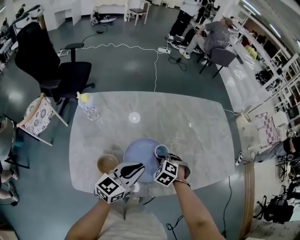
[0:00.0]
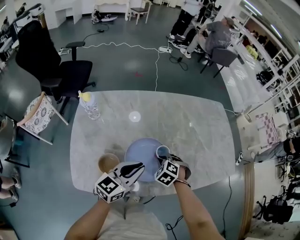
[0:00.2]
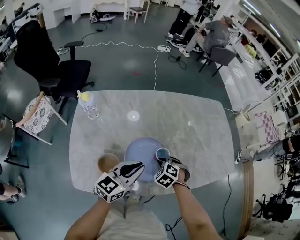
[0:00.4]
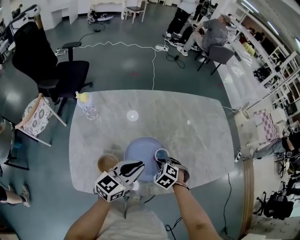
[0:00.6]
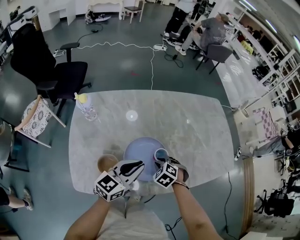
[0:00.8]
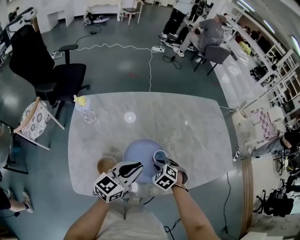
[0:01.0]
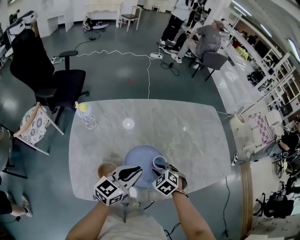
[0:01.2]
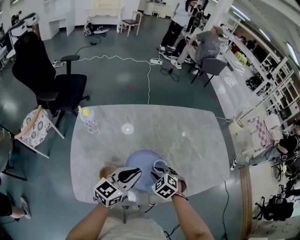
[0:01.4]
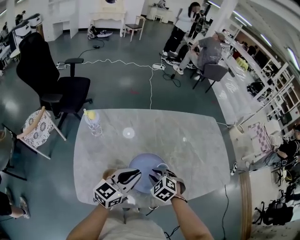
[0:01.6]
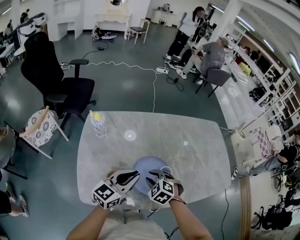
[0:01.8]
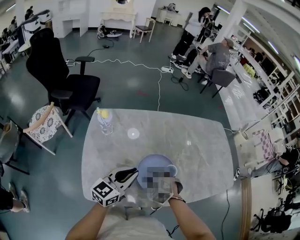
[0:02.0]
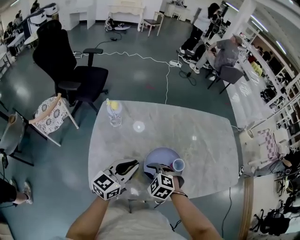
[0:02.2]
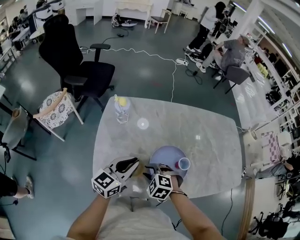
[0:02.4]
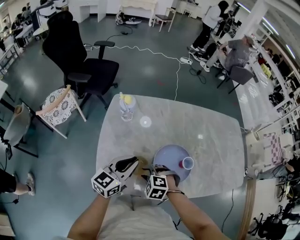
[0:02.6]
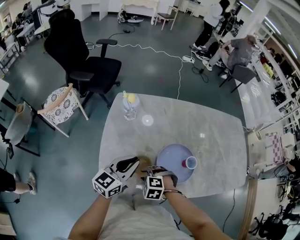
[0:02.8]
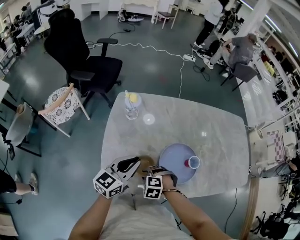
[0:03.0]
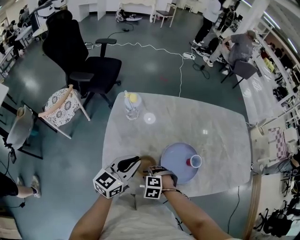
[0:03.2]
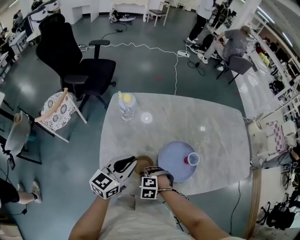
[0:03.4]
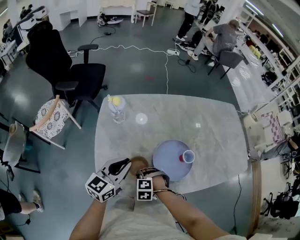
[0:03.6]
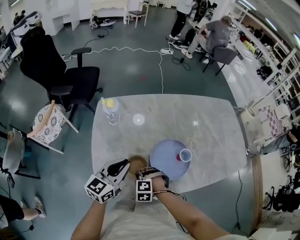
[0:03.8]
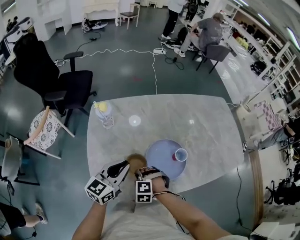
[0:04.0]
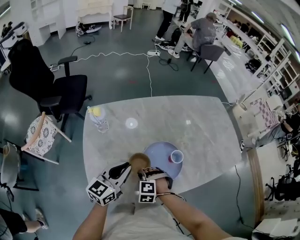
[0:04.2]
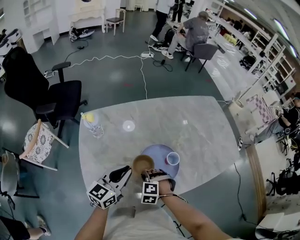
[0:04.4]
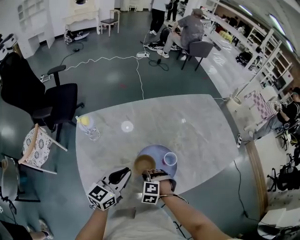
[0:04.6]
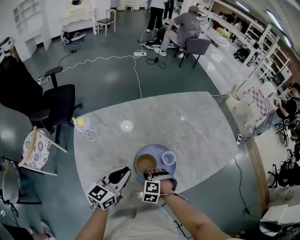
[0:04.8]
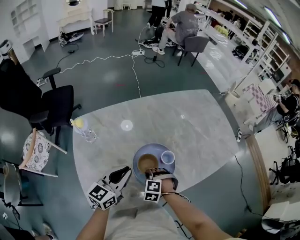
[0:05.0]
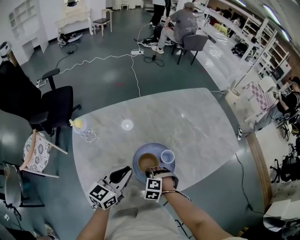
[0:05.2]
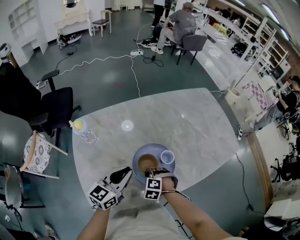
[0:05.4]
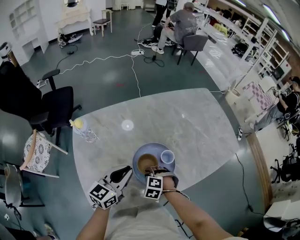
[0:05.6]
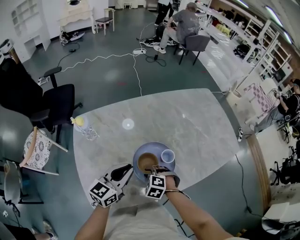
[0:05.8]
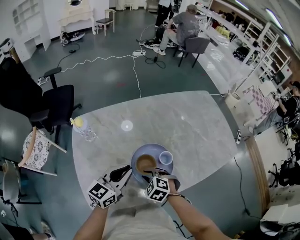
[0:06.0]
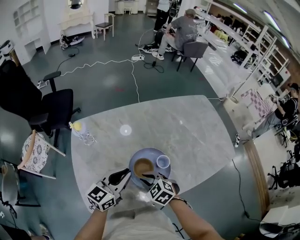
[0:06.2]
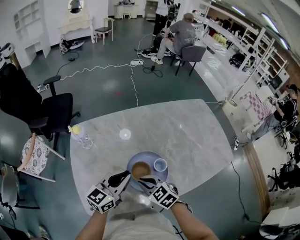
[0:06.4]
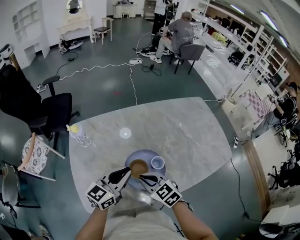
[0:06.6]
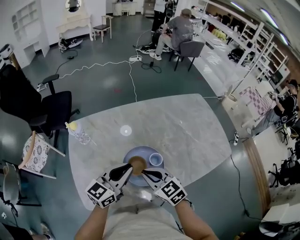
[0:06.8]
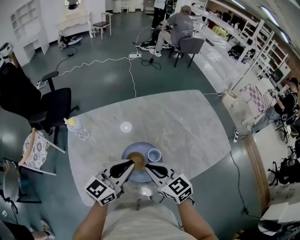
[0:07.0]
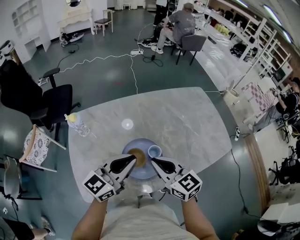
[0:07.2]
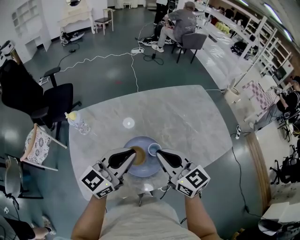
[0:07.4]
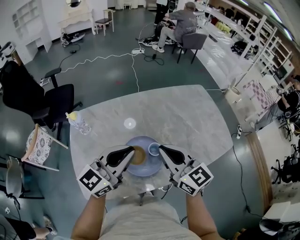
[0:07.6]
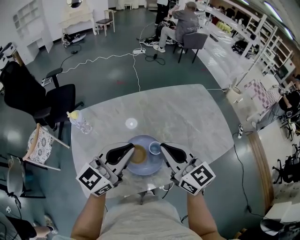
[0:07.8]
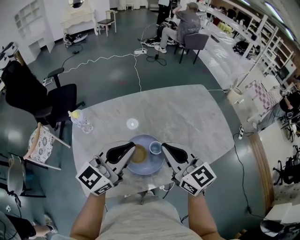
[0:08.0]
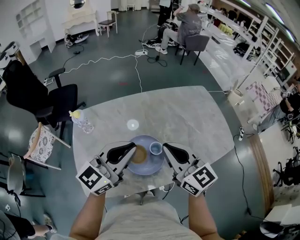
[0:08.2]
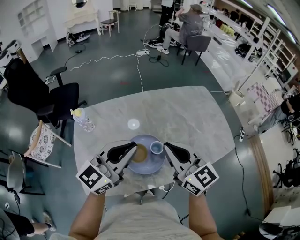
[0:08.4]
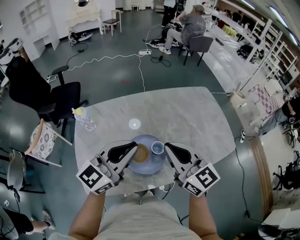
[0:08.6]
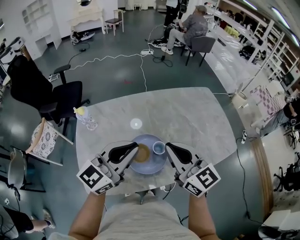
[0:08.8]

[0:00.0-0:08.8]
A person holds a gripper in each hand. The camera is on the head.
0:00.0 to 0:01.4: The right gripper changes place by roughly 5 cm.
0:01.4 to 0:03.0: The left gripper moves some 20 cm. The right gripper shifts by about 25 cm, and turns by roughly 40 degrees.
0:03.0 to 0:04.4: The left gripper changes place by roughly 5 cm. The right gripper changes place by some 10 cm, changes its angle by about 20 degrees, and closes.
0:04.4 to 0:05.8: The right gripper opens.
0:05.8 to 0:07.4: The left gripper shifts about 15 cm upward and to the right. Meanwhile the right gripper shifts some 30 cm upward, tilts its fingers approximately 60 degrees upward, and closes its fingers.
0:07.4 to 0:08.8: The right gripper goes some 5 cm upward.

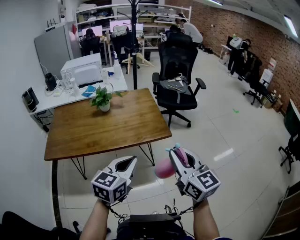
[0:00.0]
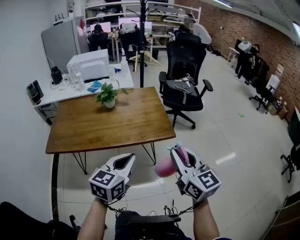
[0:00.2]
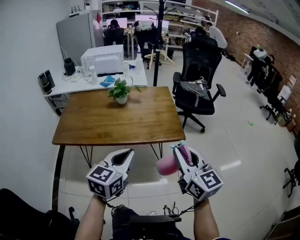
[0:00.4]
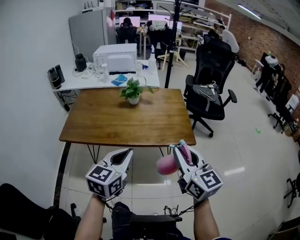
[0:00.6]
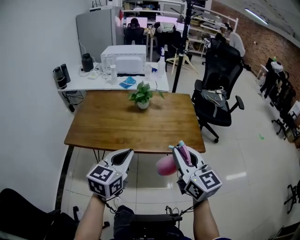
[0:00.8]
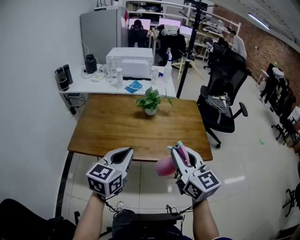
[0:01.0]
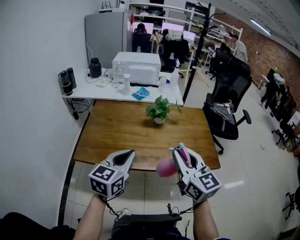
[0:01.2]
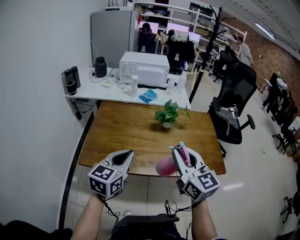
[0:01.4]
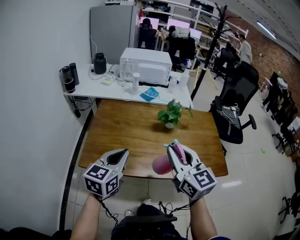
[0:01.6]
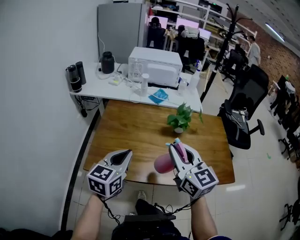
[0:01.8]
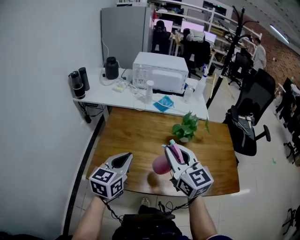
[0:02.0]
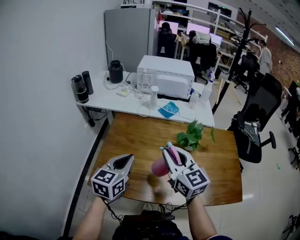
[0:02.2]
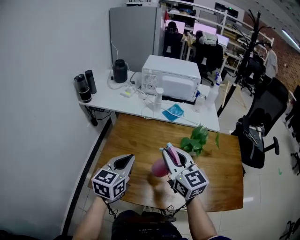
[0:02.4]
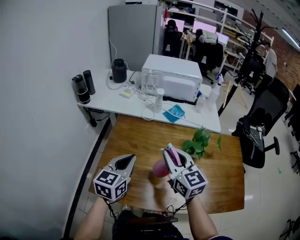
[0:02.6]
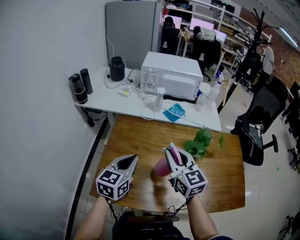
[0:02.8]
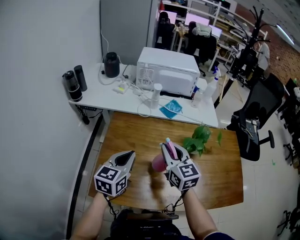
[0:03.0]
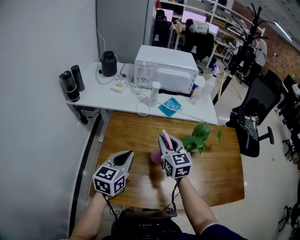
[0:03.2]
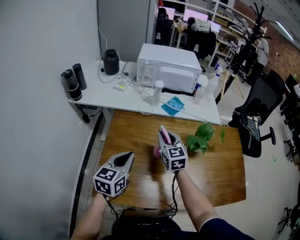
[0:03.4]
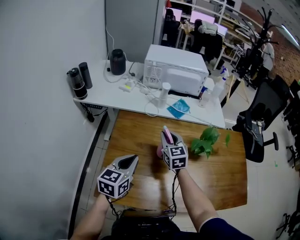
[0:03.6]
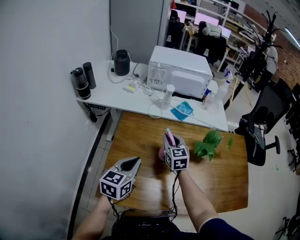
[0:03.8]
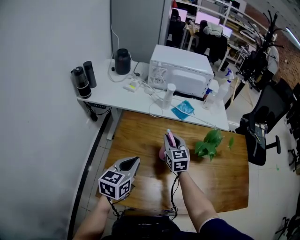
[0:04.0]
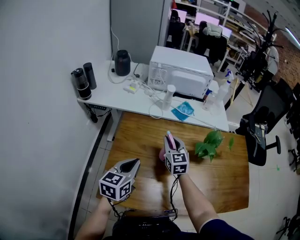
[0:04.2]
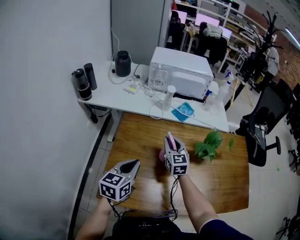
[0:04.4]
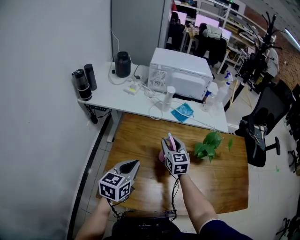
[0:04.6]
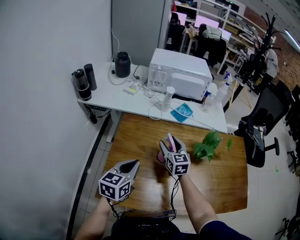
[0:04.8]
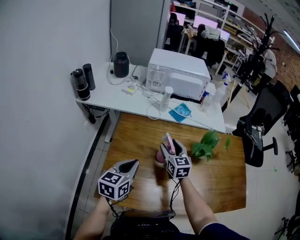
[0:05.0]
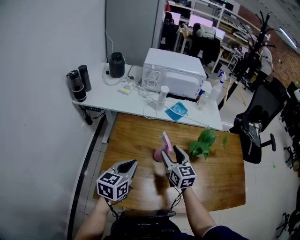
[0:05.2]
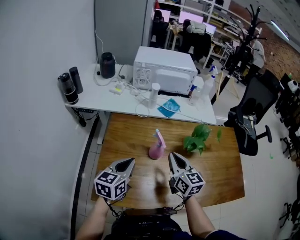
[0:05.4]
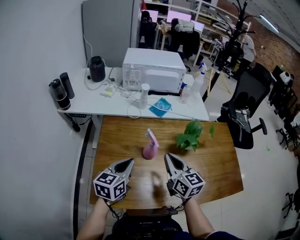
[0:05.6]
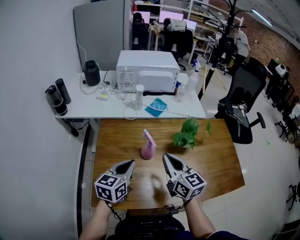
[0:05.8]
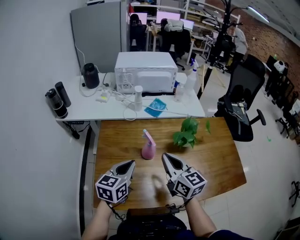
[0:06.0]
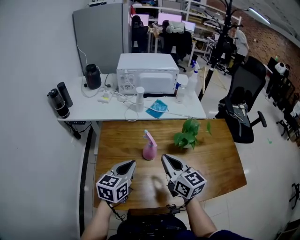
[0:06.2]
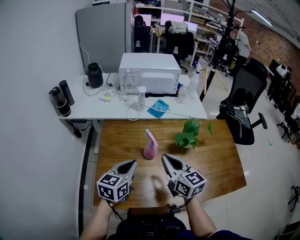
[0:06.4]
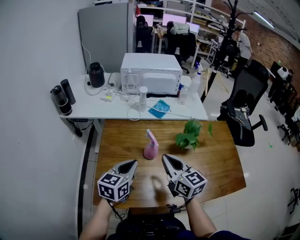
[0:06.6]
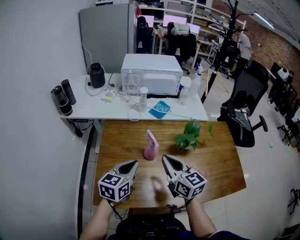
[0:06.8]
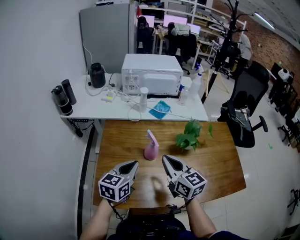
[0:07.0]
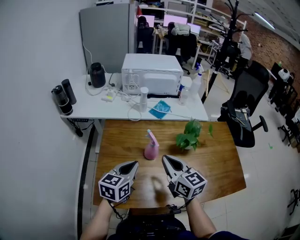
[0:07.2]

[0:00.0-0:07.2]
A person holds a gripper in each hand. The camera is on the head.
0:00.0 to 0:01.4: Both grippers move to the left and forward, approximately 40 cm.
0:01.4 to 0:02.8: The grippers both shift forward and to the left by some 25 cm.
0:02.8 to 0:04.4: The right gripper heads forward and downward, covering about 20 cm. The left gripper goes about 5 cm downward.
0:04.4 to 0:05.8: The right gripper travels backward, upward and to the right by some 20 cm, turns by some 20 degrees, and opens, then closes once more; the left gripper goes some 5 cm to the right.
0:05.8 to 0:07.2: The grippers make only small movements.

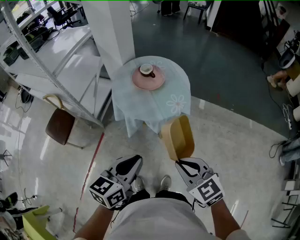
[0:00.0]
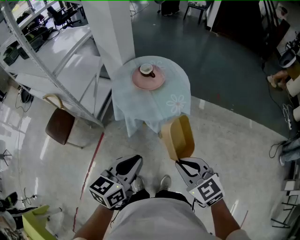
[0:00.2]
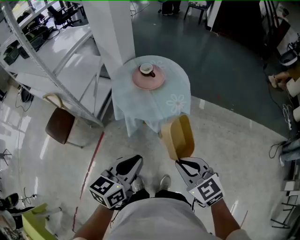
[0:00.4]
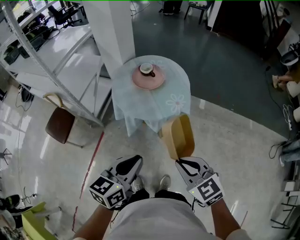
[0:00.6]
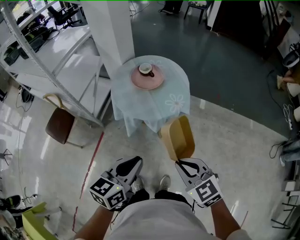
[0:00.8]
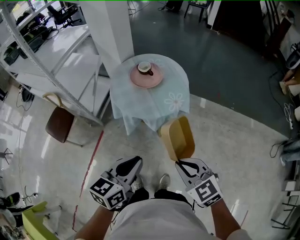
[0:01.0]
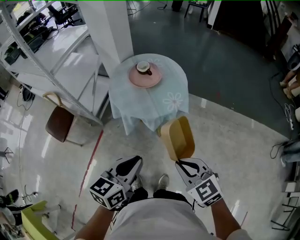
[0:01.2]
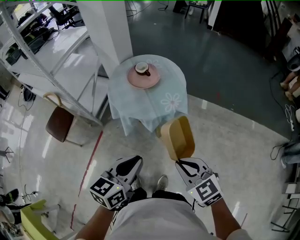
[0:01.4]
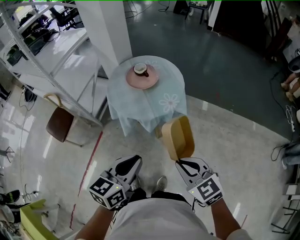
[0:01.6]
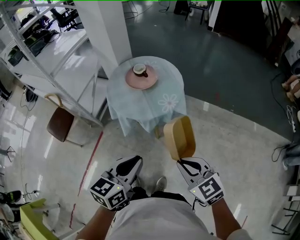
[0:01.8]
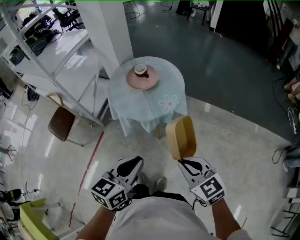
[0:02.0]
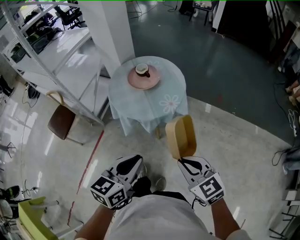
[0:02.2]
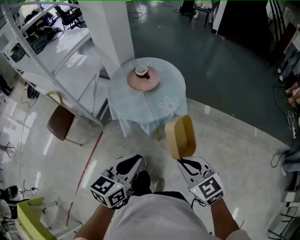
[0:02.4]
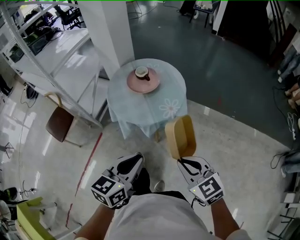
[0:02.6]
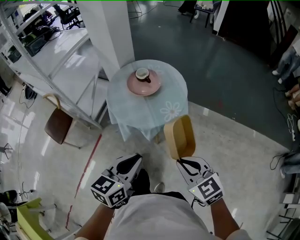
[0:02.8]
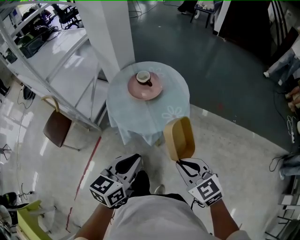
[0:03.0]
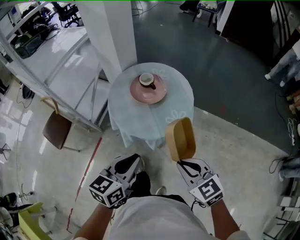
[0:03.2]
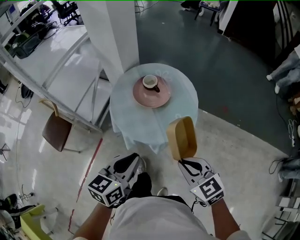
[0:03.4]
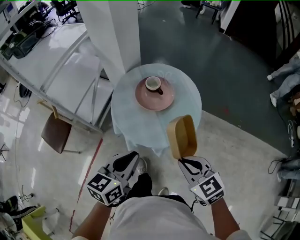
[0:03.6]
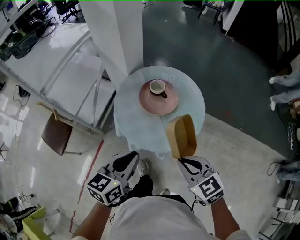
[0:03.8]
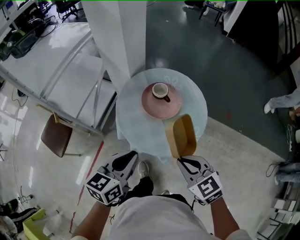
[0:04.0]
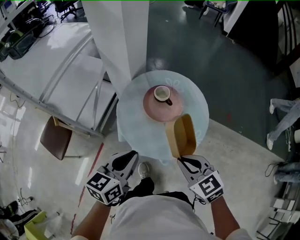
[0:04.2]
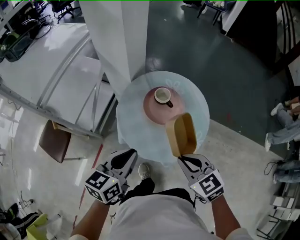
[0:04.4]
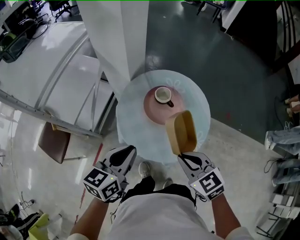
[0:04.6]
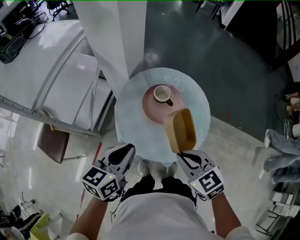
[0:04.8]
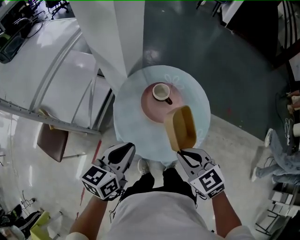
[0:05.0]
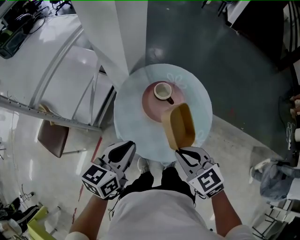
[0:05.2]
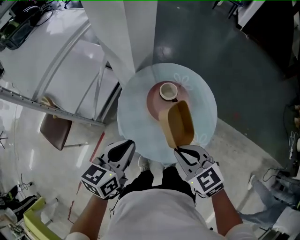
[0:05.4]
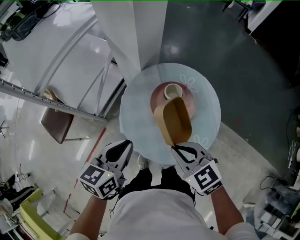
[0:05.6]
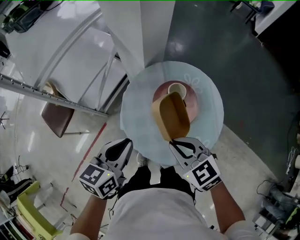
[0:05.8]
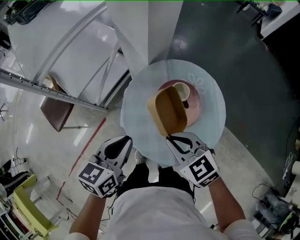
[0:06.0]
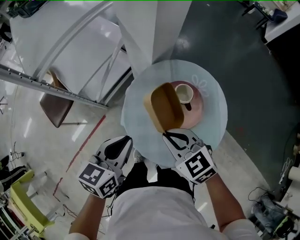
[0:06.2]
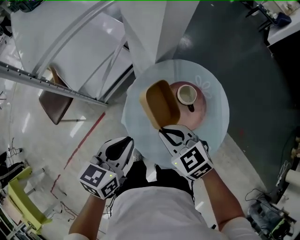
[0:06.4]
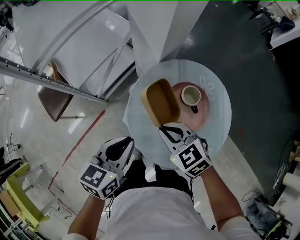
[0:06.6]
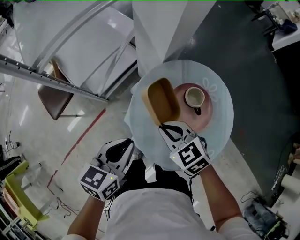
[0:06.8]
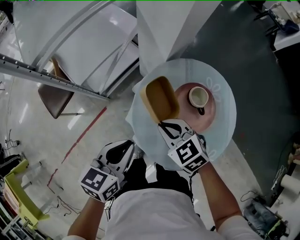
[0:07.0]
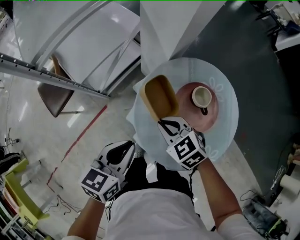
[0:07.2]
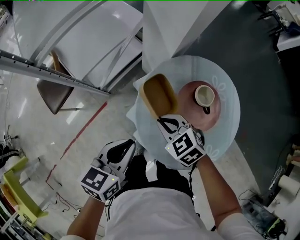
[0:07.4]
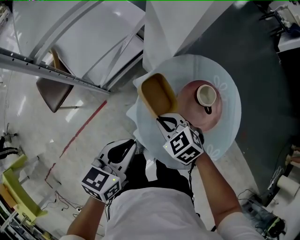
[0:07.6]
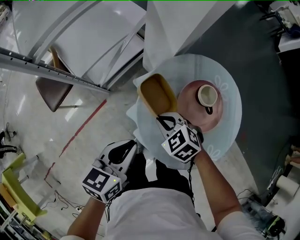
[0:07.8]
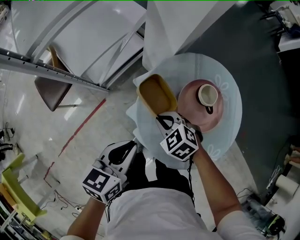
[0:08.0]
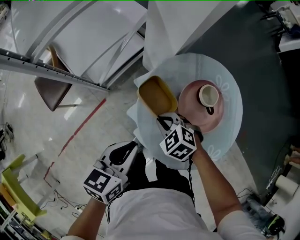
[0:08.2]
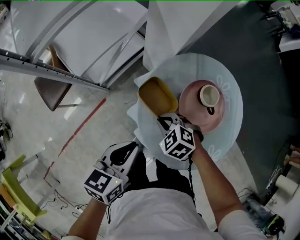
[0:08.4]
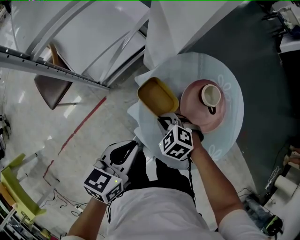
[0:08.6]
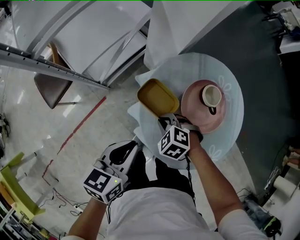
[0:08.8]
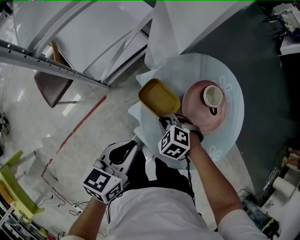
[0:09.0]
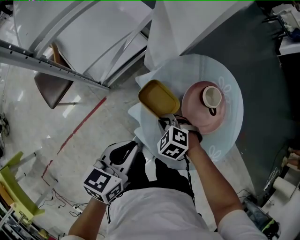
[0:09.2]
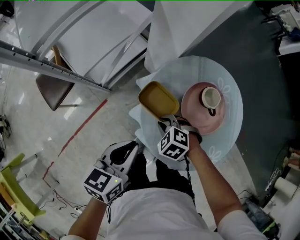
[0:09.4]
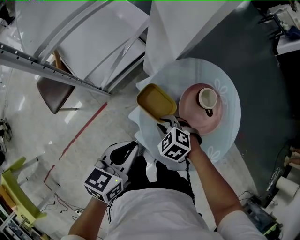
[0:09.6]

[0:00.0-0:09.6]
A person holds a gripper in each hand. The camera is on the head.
0:00.0 to 0:01.6: Both grippers move to the right, about 5 cm.
0:01.6 to 0:03.2: The grippers both shift forward by about 15 cm.
0:03.2 to 0:04.8: Both grippers move forward and to the left, about 25 cm.
0:04.8 to 0:06.4: The right gripper goes approximately 15 cm forward, to the left and downward, and swivels about 30 degrees. Meanwhile the left gripper moves some 5 cm, and rotates approximately 20 degrees.
0:06.4 to 0:08.0: The left gripper moves downward and to the left, approximately 10 cm; the right gripper goes some 15 cm downward and to the left, and swivels approximately 20 degrees.
0:08.0 to 0:09.6: There are only small adjustments of the grippers.
